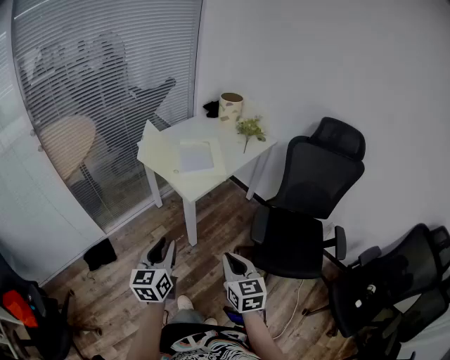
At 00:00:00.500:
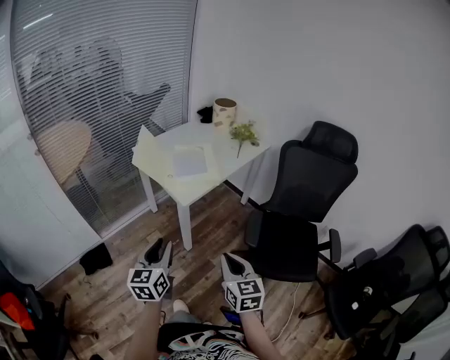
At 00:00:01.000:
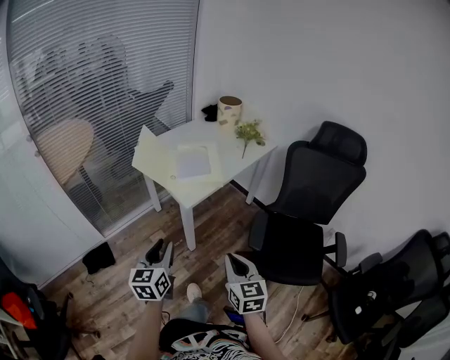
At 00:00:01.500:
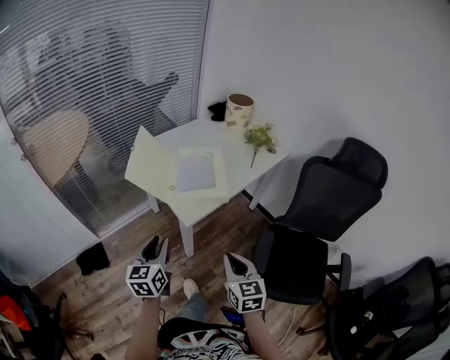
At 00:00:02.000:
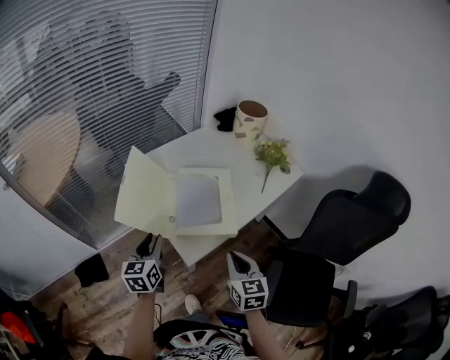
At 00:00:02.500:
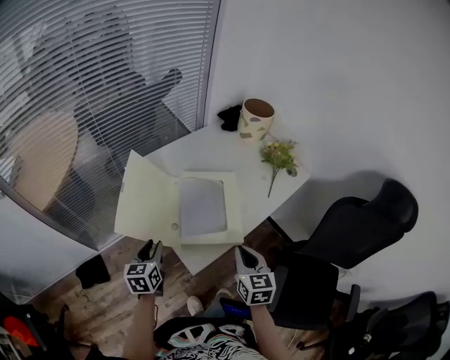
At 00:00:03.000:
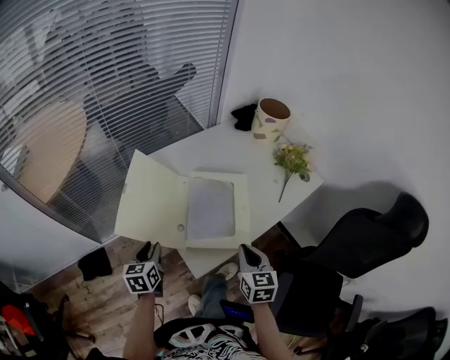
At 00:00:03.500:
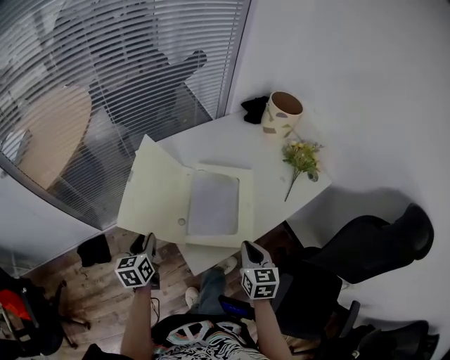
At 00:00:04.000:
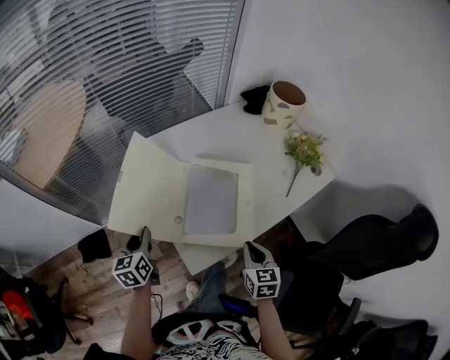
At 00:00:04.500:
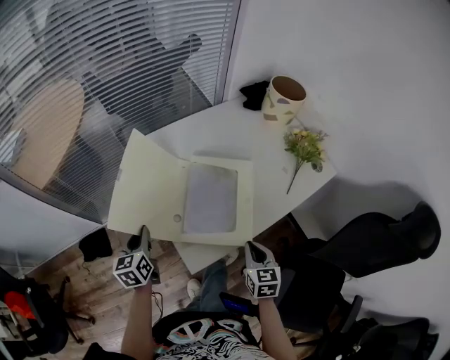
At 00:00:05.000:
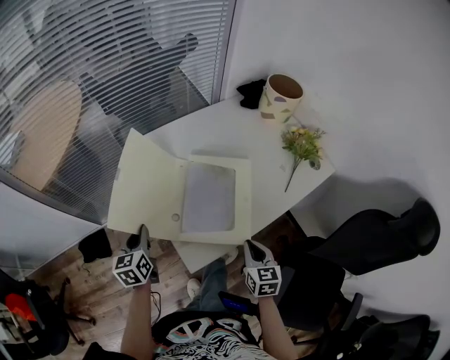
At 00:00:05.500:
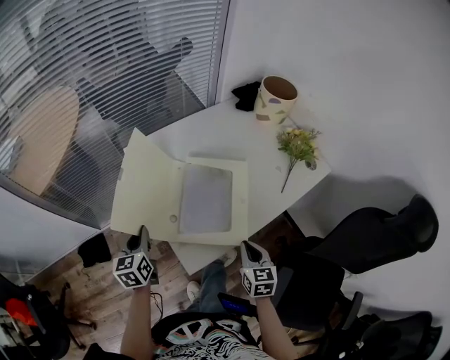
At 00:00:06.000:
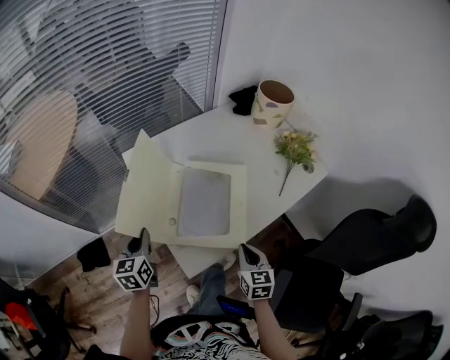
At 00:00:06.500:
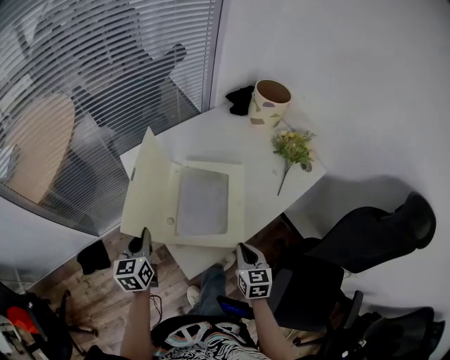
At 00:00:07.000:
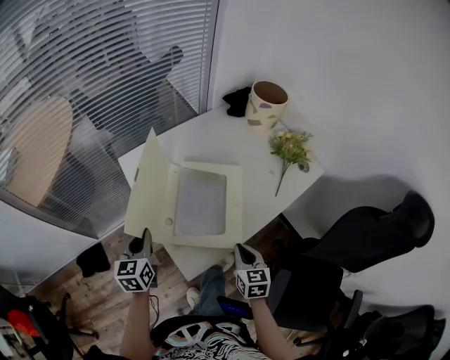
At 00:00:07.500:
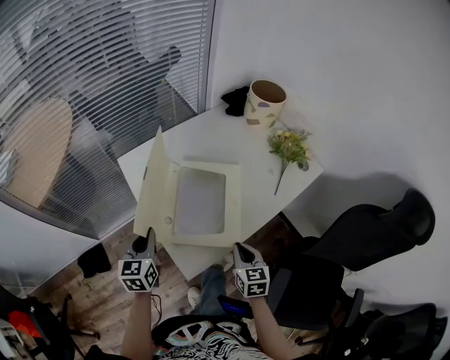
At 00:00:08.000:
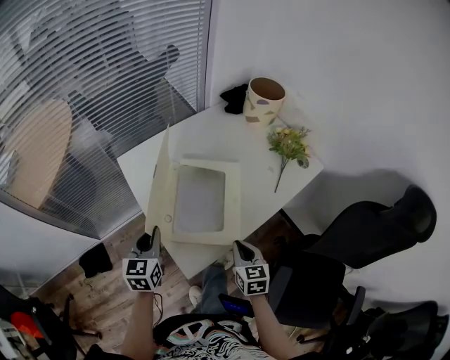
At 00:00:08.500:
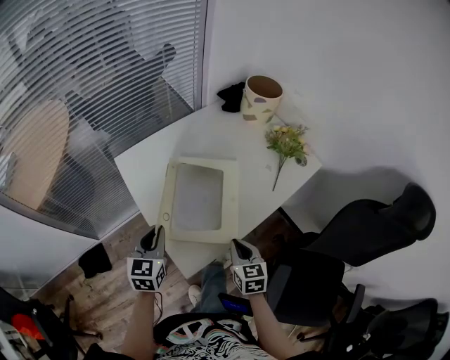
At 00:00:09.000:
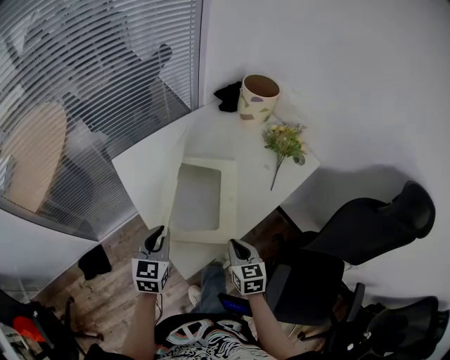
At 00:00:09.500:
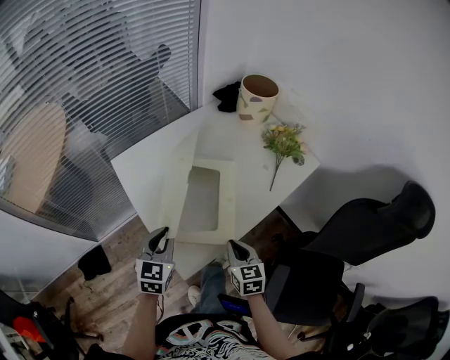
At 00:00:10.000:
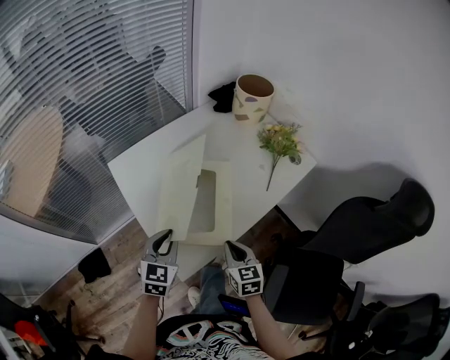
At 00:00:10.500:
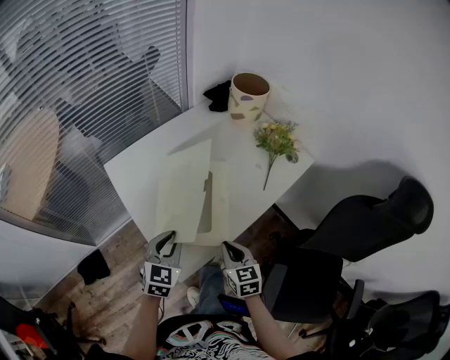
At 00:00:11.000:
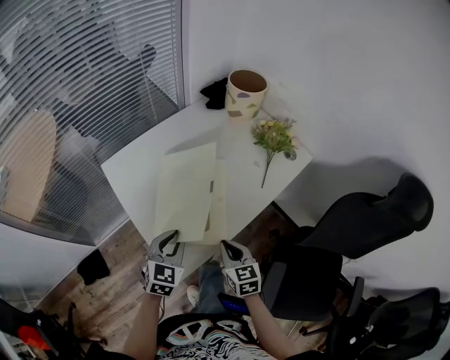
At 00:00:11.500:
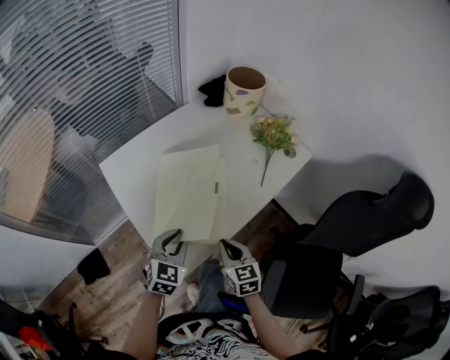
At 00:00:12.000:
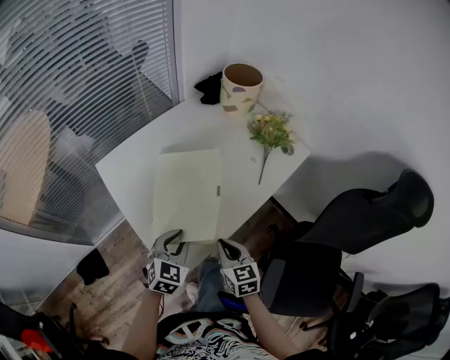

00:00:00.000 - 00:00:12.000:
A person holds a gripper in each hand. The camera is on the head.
00:00:00.000 - 00:00:02.000: The two grippers go roughly 35 cm forward.
00:00:02.000 - 00:00:04.000: The right gripper heads forward and downward, covering approximately 15 cm, while the left gripper moves downward, forward and to the left, approximately 10 cm.
00:00:04.000 - 00:00:06.000: The left gripper closes.
00:00:06.000 - 00:00:08.000: The left gripper travels to the right by approximately 5 cm.
00:00:08.000 - 00:00:10.000: The left gripper shifts approximately 10 cm to the right, and rotates some 20 degrees.
00:00:10.000 - 00:00:12.000: The left gripper travels to the right by approximately 5 cm.

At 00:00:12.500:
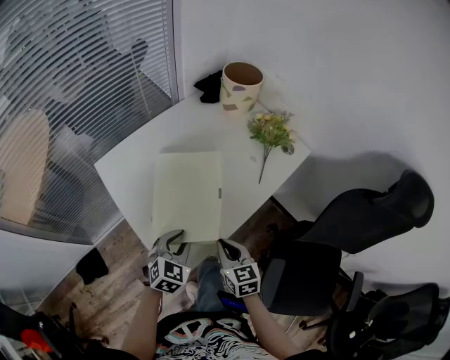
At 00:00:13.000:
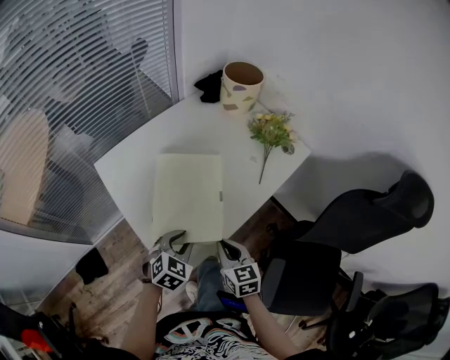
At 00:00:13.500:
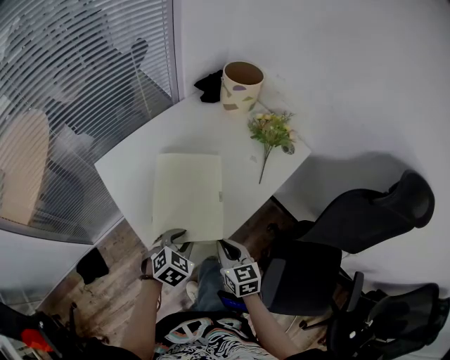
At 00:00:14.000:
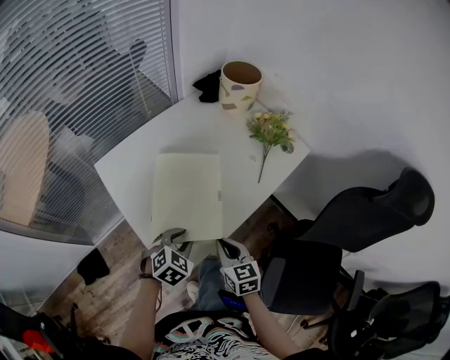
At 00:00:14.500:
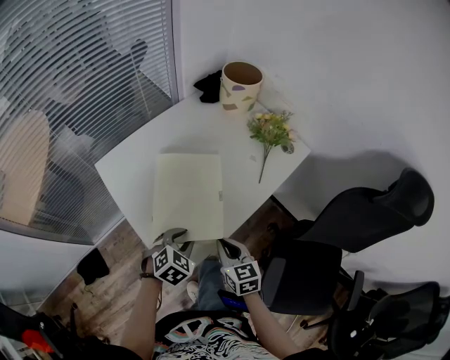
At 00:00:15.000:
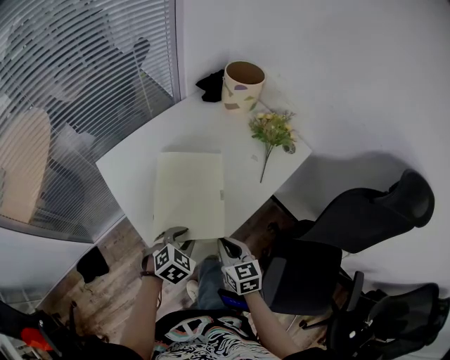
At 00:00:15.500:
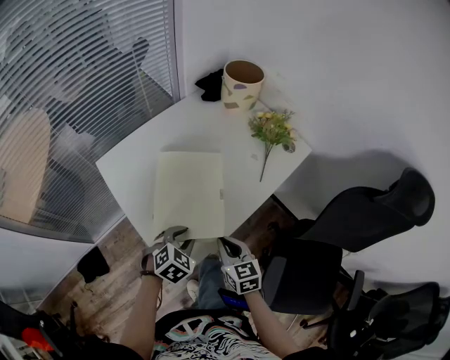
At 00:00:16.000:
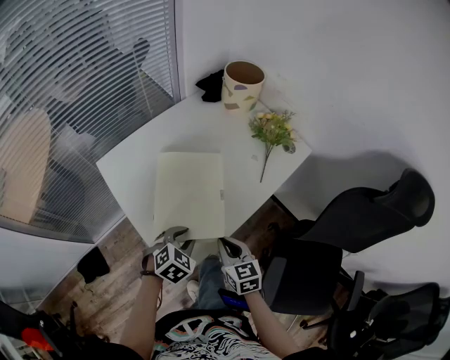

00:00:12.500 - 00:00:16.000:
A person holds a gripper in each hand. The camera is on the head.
00:00:12.500 - 00:00:14.500: The grippers make only small movements.
00:00:14.500 - 00:00:16.000: Both grippers stay about where they are.

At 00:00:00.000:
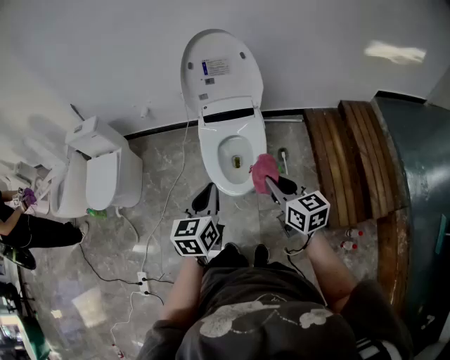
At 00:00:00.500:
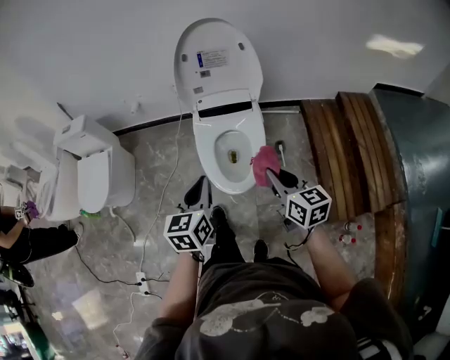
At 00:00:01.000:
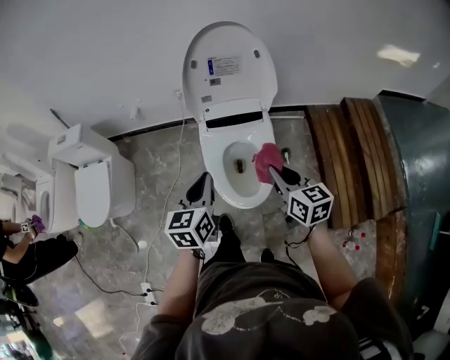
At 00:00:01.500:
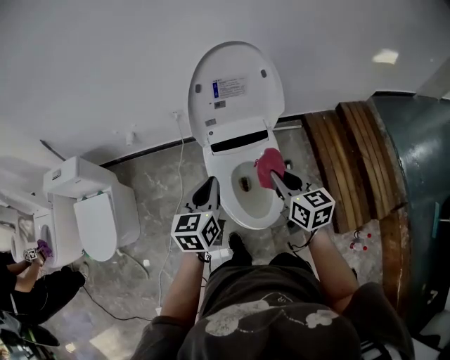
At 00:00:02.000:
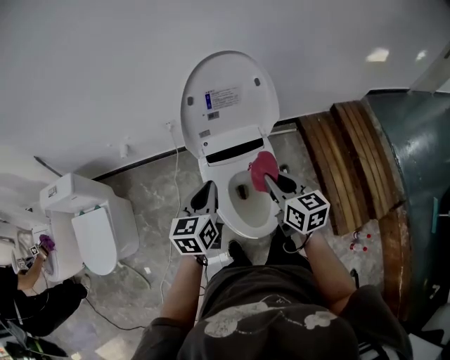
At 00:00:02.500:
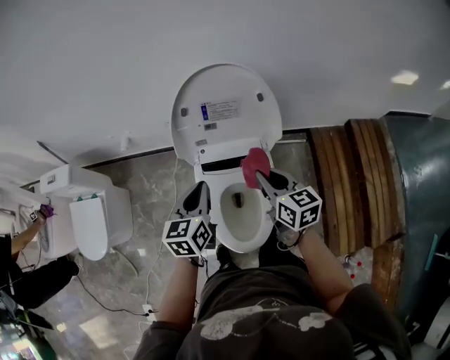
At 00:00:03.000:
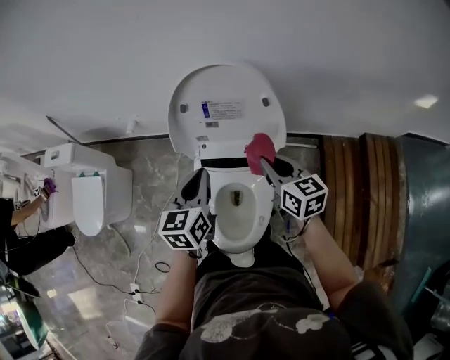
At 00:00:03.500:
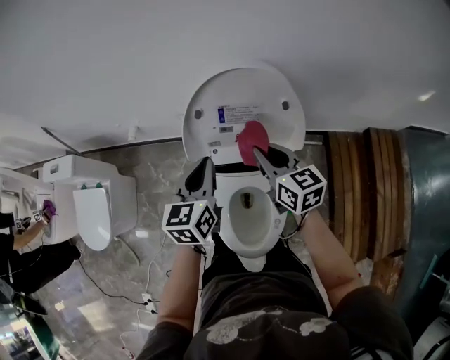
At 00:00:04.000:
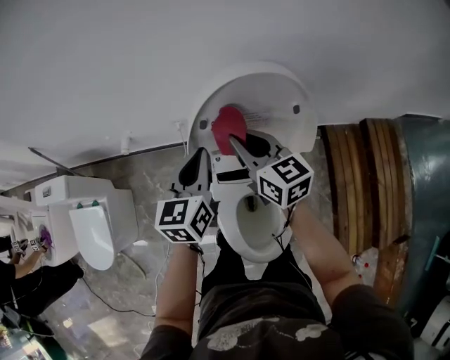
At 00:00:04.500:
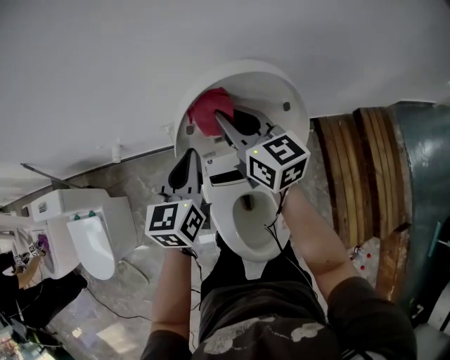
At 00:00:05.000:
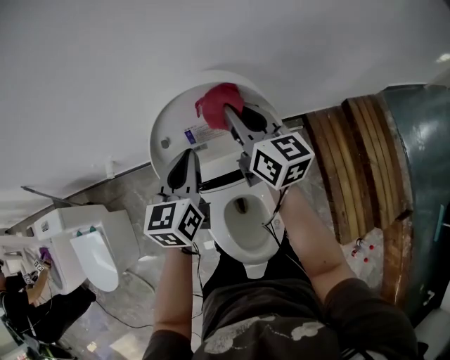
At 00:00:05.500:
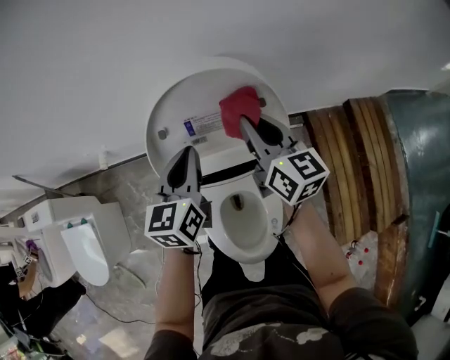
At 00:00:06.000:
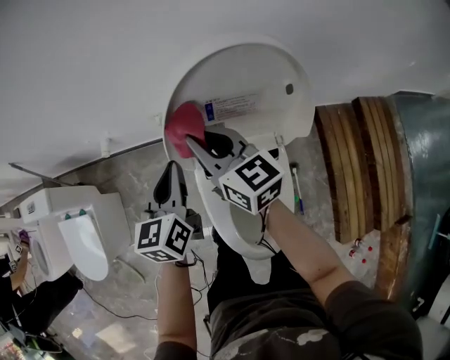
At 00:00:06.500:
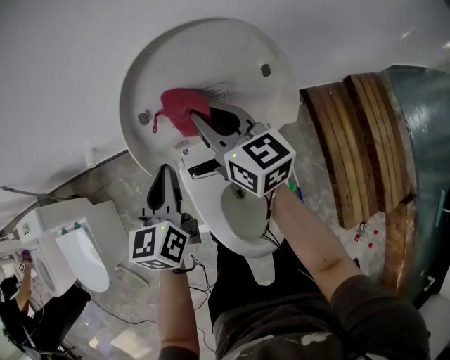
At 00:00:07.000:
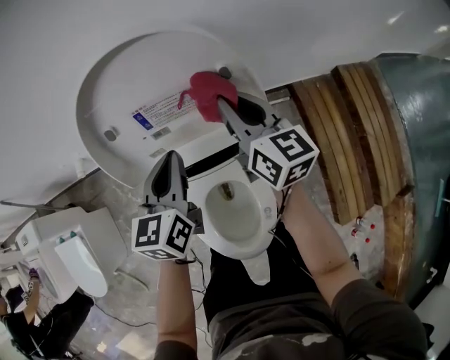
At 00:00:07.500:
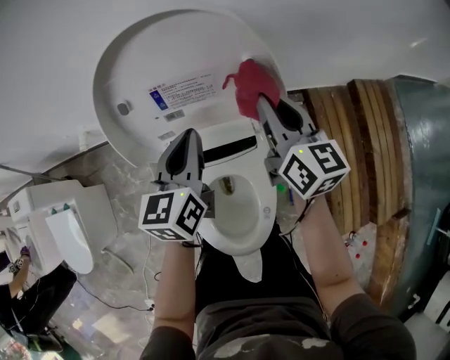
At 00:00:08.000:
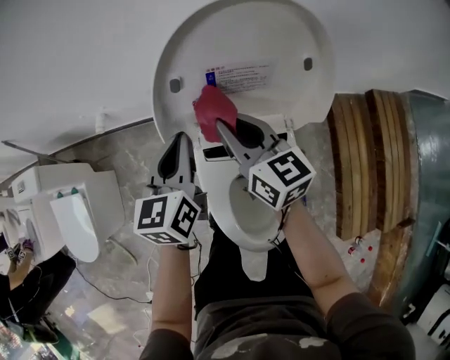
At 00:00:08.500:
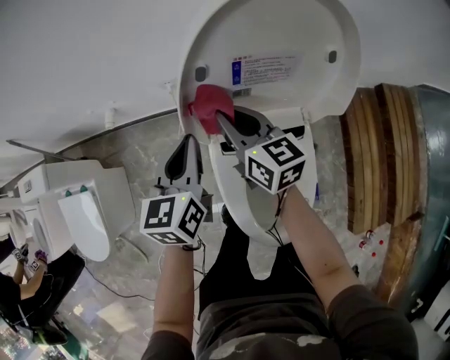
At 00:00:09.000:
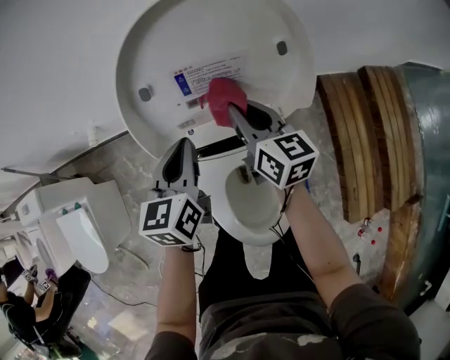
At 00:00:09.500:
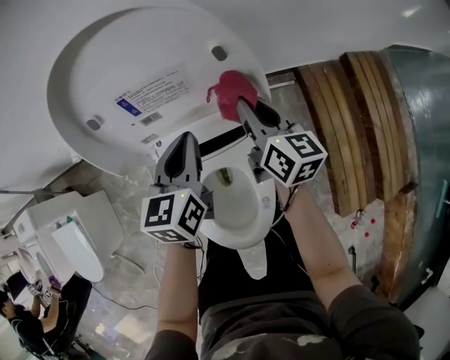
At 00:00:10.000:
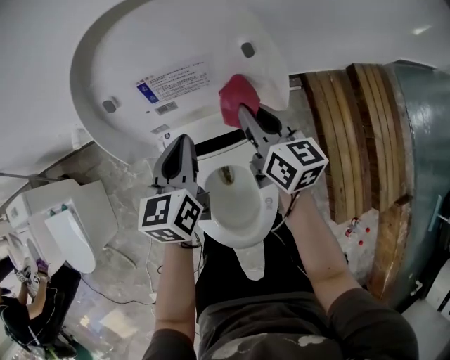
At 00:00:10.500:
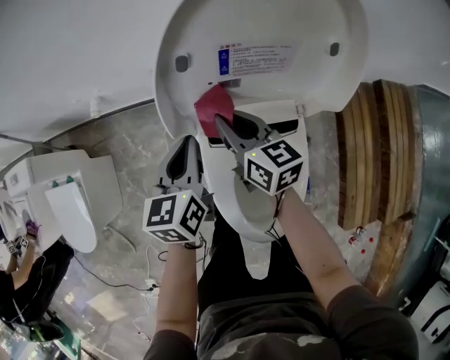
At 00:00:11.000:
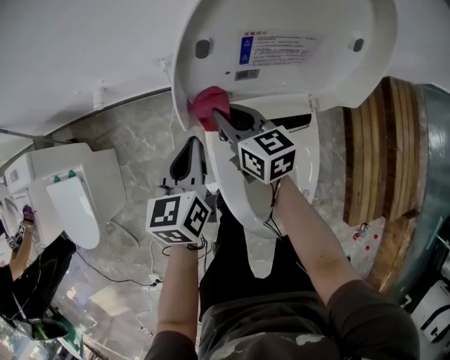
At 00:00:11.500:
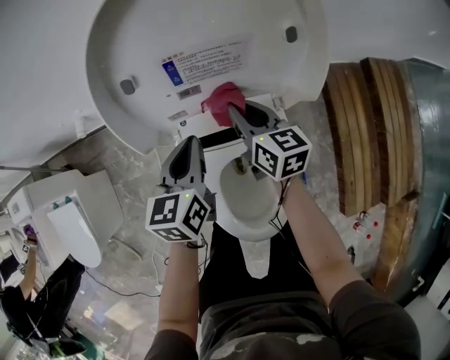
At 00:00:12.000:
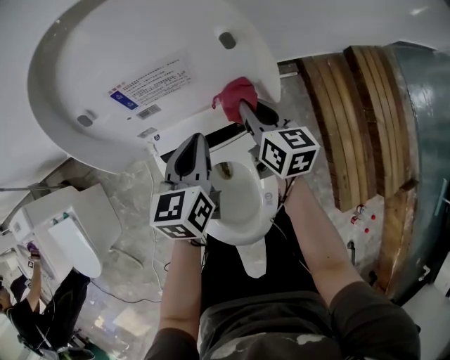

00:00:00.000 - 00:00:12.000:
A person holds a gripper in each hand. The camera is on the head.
00:00:00.000 - 00:00:02.000: Both grippers travel together forward, about 30 cm.
00:00:02.000 - 00:00:04.000: The two grippers go some 25 cm forward.
00:00:04.000 - 00:00:06.000: The right gripper goes to the right and returns, some 15 cm each way, while the left gripper is displaced downward by approximately 5 cm, and reaches approximately 5 cm to the right, then returns.
00:00:06.000 - 00:00:08.000: The left gripper goes to the right and returns, approximately 15 cm each way; the right gripper goes roughly 5 cm downward, and goes to the right and returns, about 25 cm each way.
00:00:08.000 - 00:00:10.000: The left gripper swings left and right, about 20 cm each way, with 2 reversals, while the right gripper moves left and right over approximately 25 cm, changing direction 2 times.
00:00:10.000 - 00:00:12.000: The right gripper heads downward, covering about 10 cm, and reaches about 25 cm to the left, then returns. Meanwhile the left gripper moves about 15 cm to the left and comes back.
